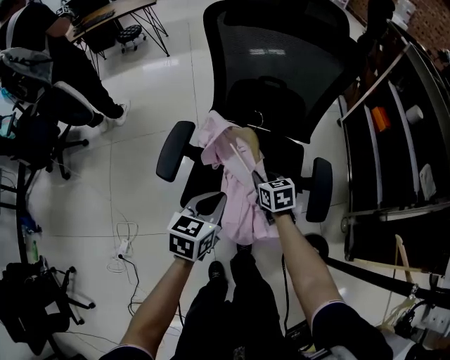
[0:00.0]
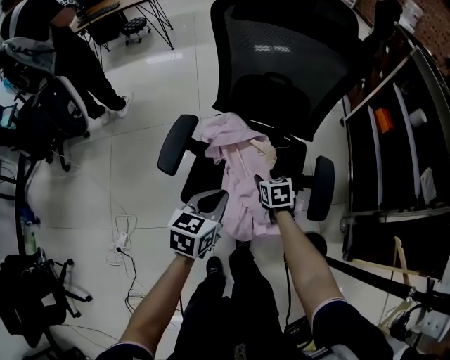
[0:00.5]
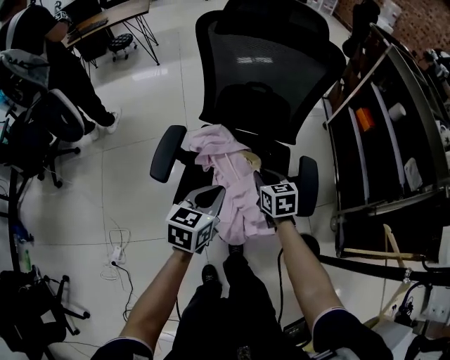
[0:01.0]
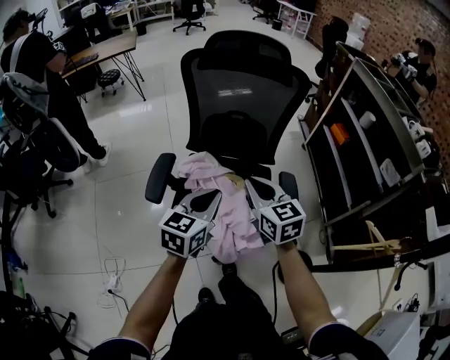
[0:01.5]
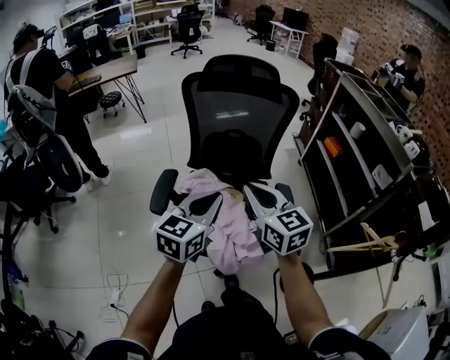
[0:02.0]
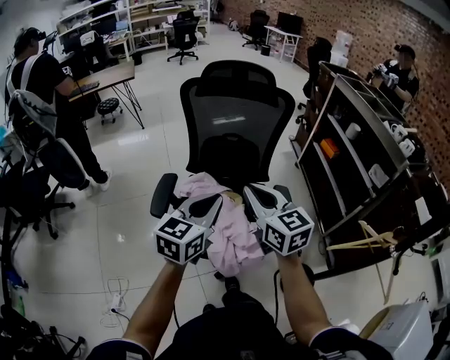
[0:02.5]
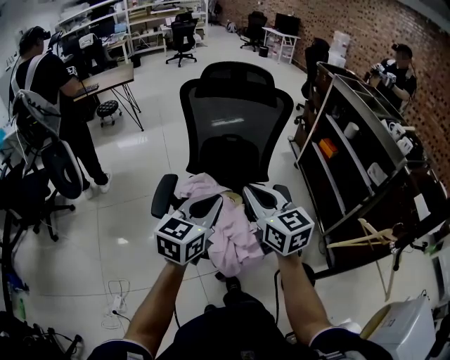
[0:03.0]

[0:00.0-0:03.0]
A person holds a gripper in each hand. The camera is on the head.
0:00.0 to 0:01.5: The left gripper moves upward, about 10 cm; the right gripper goes about 25 cm upward, rotates approximately 30 degrees, and opens and closes again.
0:01.5 to 0:03.0: The left gripper travels upward by about 10 cm, while the right gripper heads upward and backward, covering some 10 cm.

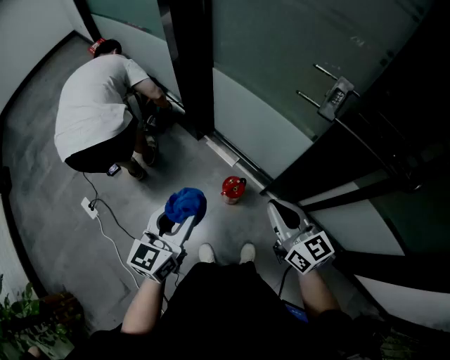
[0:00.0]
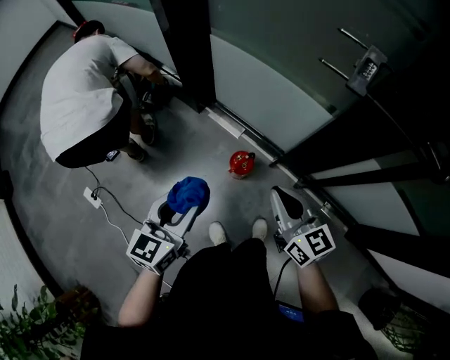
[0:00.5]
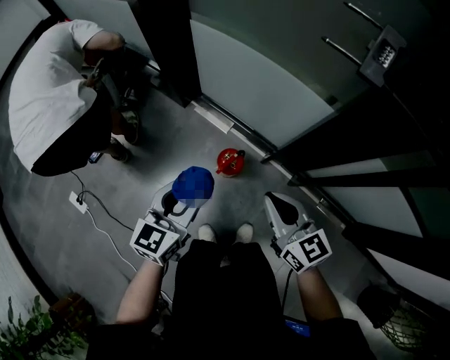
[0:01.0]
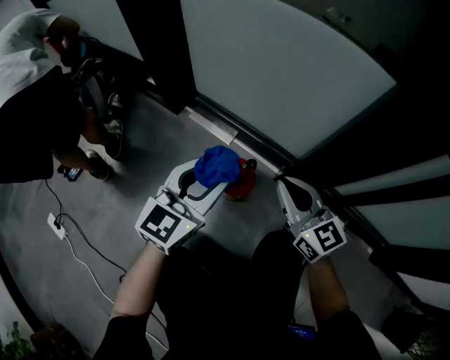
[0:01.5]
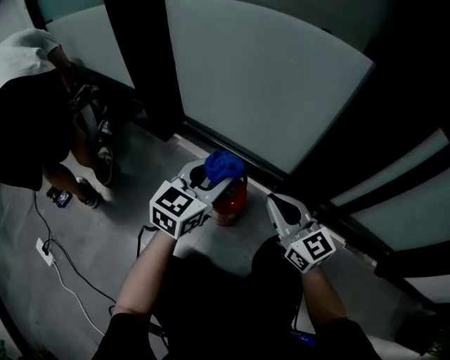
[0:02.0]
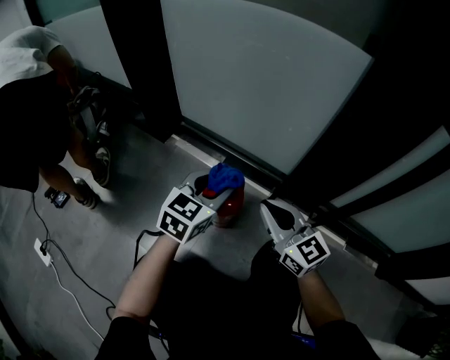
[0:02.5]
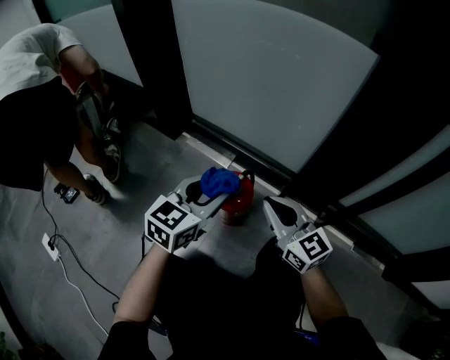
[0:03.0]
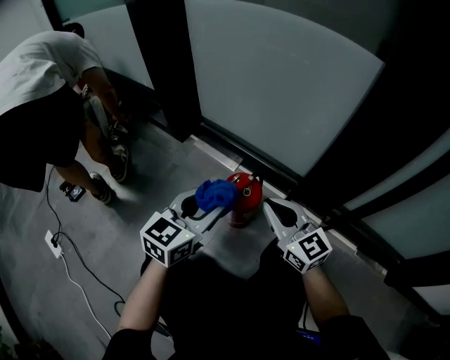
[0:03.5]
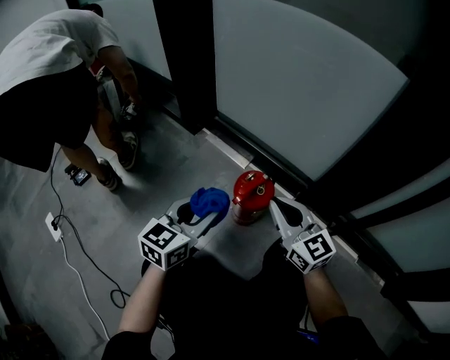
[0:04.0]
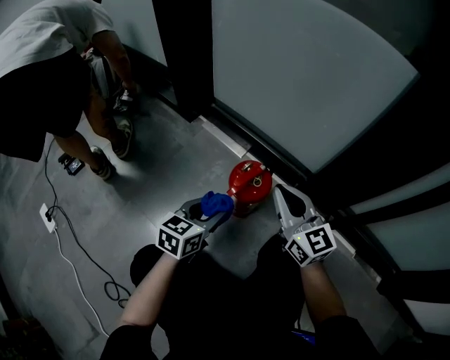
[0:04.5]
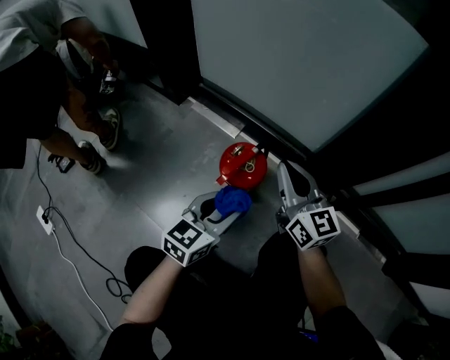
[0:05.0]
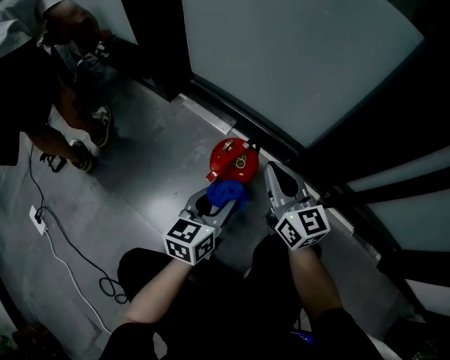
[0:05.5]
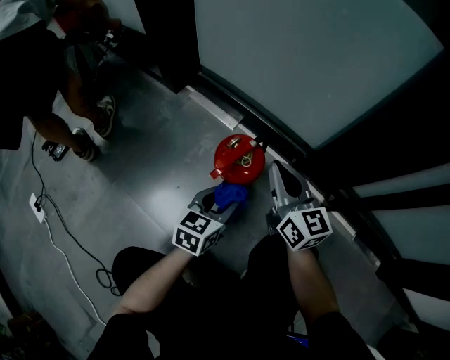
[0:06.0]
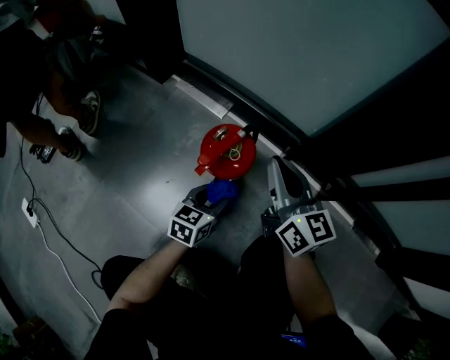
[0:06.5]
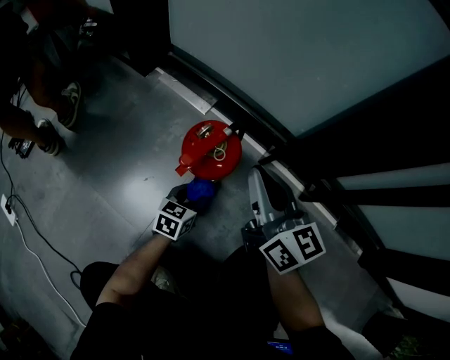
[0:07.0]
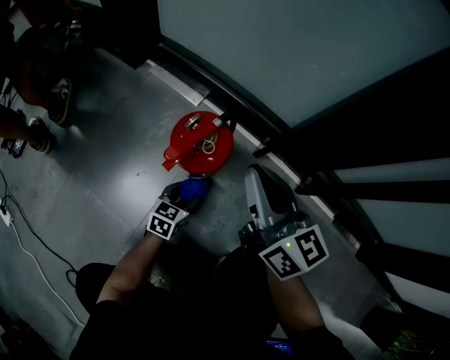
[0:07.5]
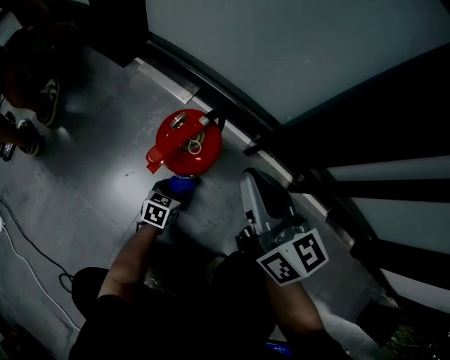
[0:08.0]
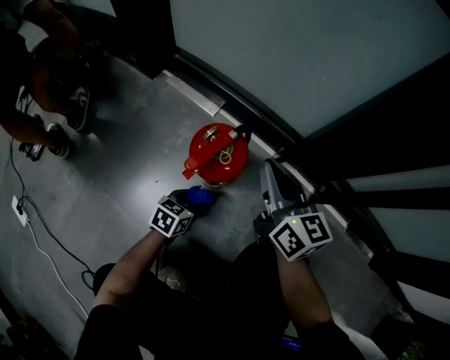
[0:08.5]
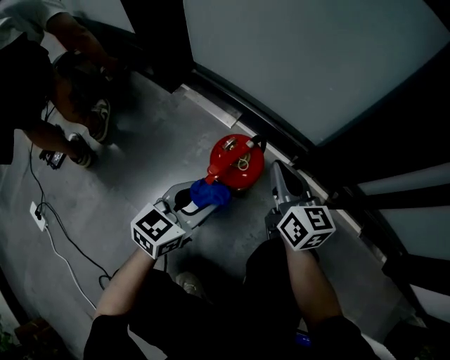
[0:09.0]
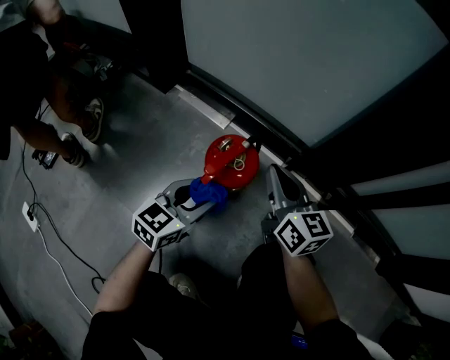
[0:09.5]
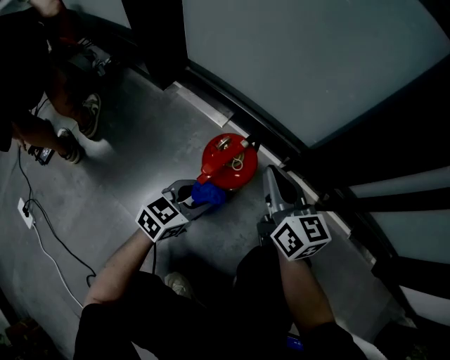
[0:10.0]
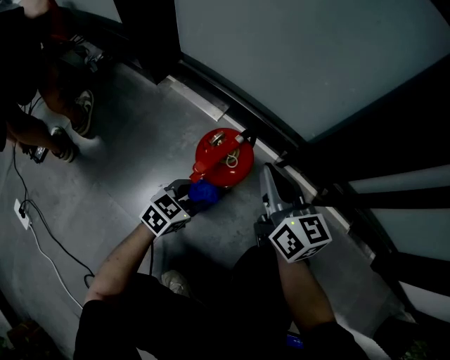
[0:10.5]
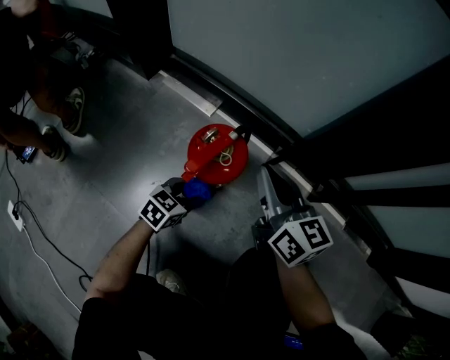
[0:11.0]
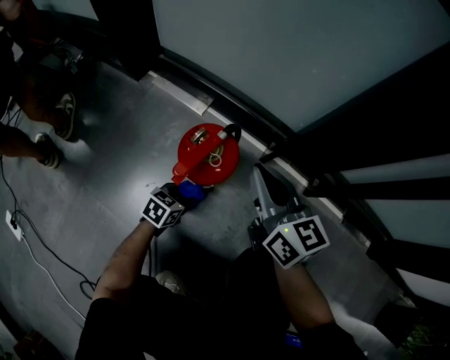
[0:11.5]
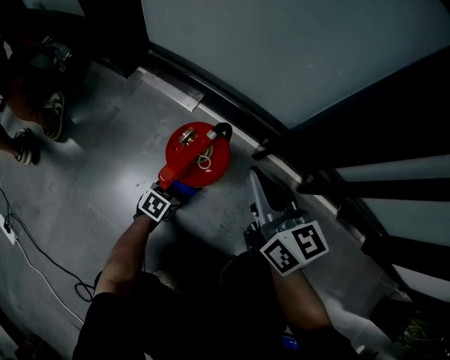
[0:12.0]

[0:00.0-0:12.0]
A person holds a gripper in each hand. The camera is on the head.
0:00.0 to 0:02.0: The right gripper moves downward, approximately 50 cm. The left gripper moves downward and forward, about 50 cm, and turns by roughly 30 degrees.
0:02.0 to 0:04.0: The right gripper shifts some 5 cm to the left. The left gripper travels to the left, backward and downward by roughly 15 cm.
0:04.0 to 0:06.0: The right gripper goes approximately 10 cm downward and forward, while the left gripper moves downward and to the right, some 20 cm.
0:06.0 to 0:08.0: The left gripper heads downward, covering about 25 cm.
0:08.0 to 0:10.0: The left gripper shifts approximately 20 cm upward, and turns by approximately 30 degrees. The right gripper changes place by roughly 5 cm.
0:10.0 to 0:12.0: The left gripper is displaced downward by approximately 20 cm, and turns by some 30 degrees.

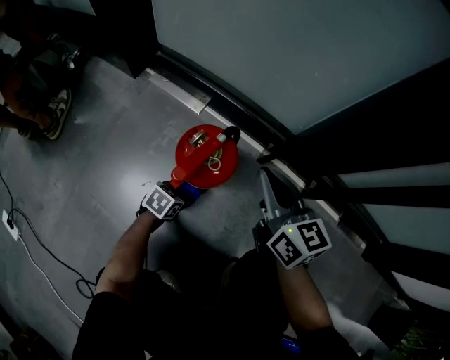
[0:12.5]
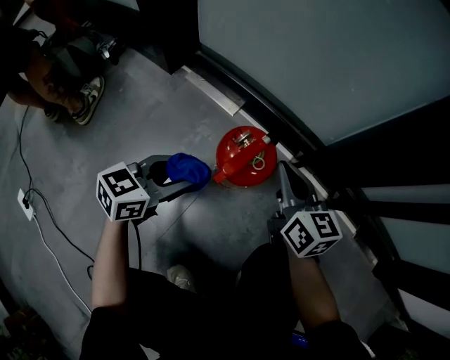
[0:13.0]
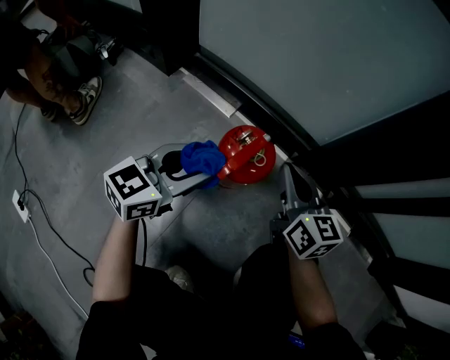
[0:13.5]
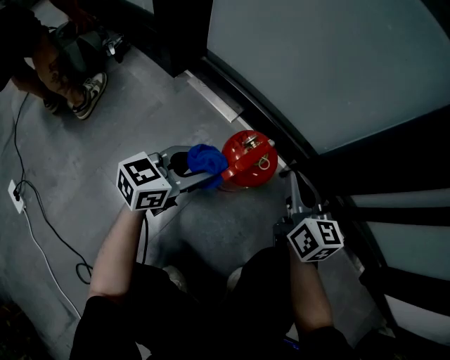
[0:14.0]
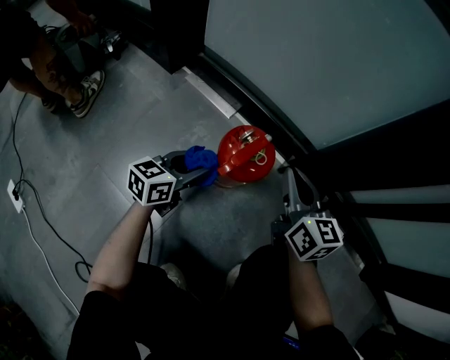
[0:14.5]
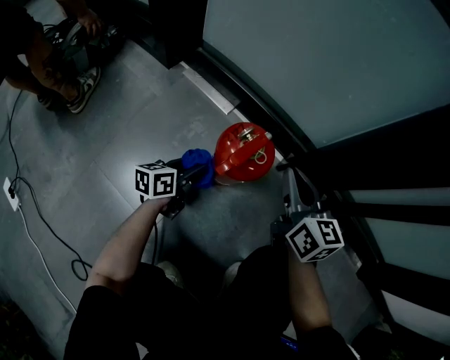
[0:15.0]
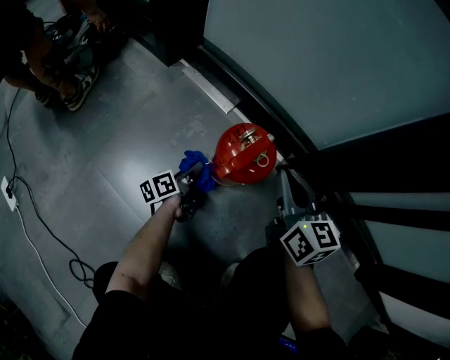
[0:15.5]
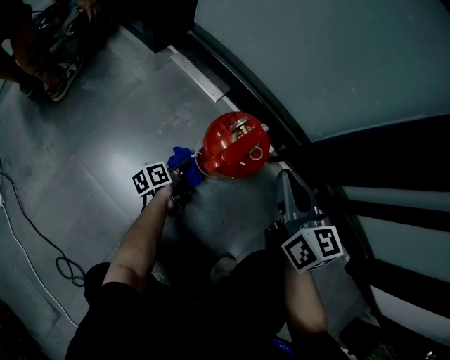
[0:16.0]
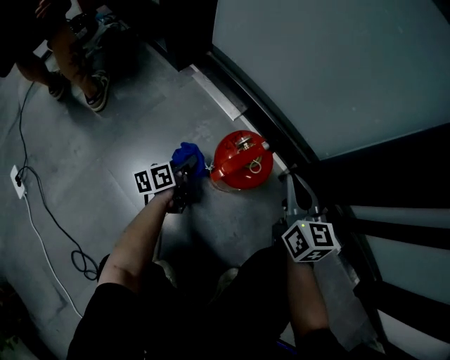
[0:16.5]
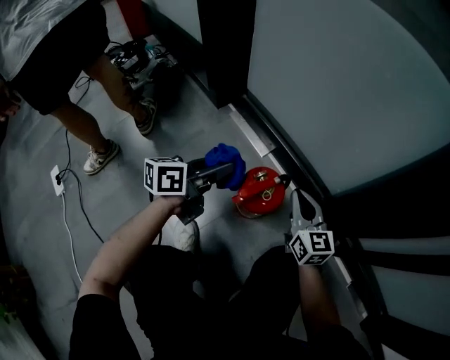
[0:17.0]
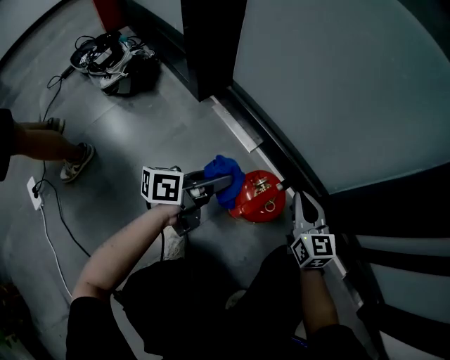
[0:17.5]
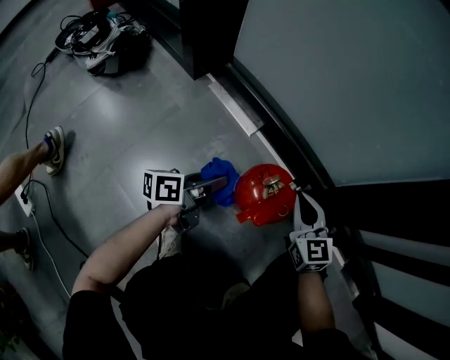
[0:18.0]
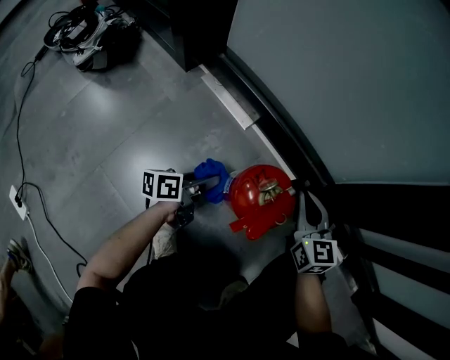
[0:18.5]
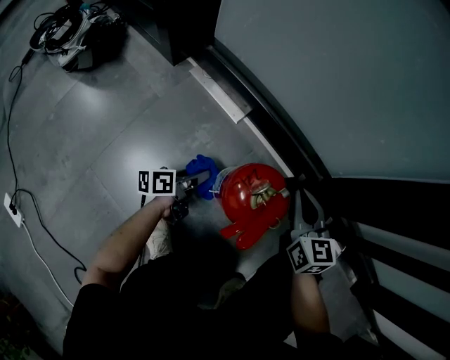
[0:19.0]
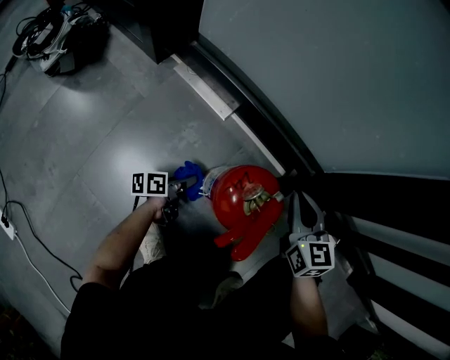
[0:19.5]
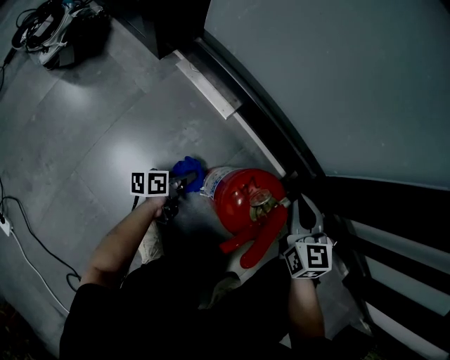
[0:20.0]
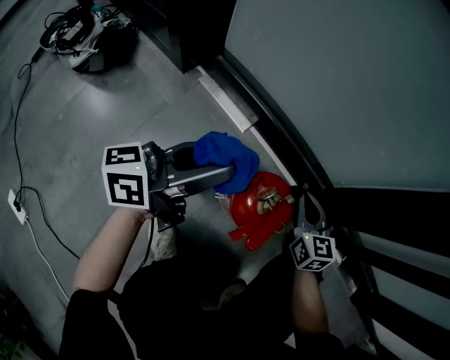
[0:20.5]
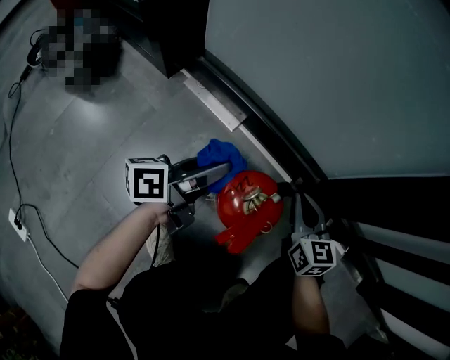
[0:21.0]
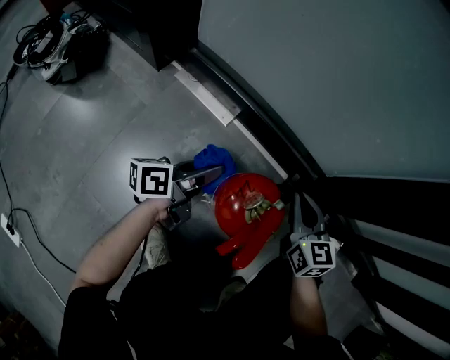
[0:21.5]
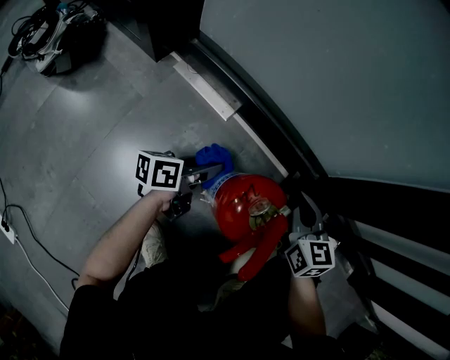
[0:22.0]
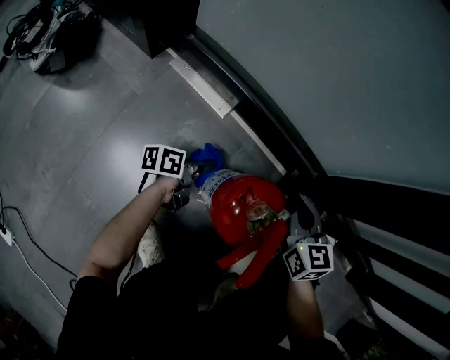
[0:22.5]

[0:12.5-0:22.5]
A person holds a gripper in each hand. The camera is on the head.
0:12.5 to 0:14.5: The left gripper is displaced upward by roughly 20 cm, and points its fingers approximately 40 degrees further upward.
0:14.5 to 0:16.5: The left gripper moves downward and to the left, about 15 cm, and changes its angle by approximately 50 degrees.
0:16.5 to 0:18.5: The right gripper is displaced downward by roughly 5 cm; the left gripper travels upward and back again, some 25 cm each way, and turns by about 30 degrees.
0:18.5 to 0:20.5: The left gripper heads upward, covering about 25 cm, and changes its angle by approximately 30 degrees.
0:20.5 to 0:22.5: The left gripper moves downward, approximately 35 cm, and tilts its fingers some 30 degrees downward.

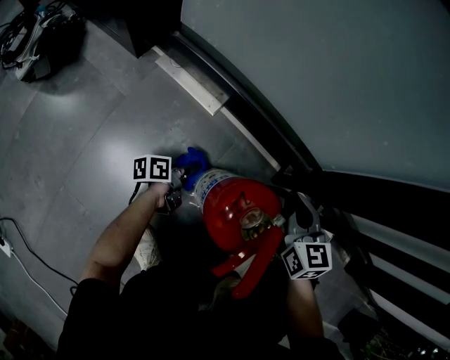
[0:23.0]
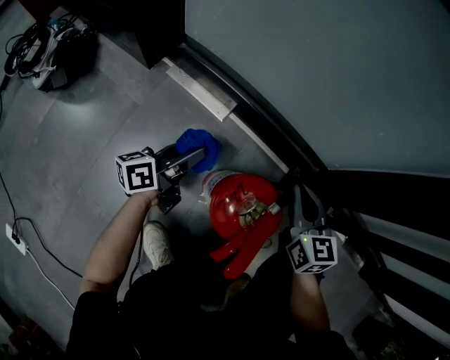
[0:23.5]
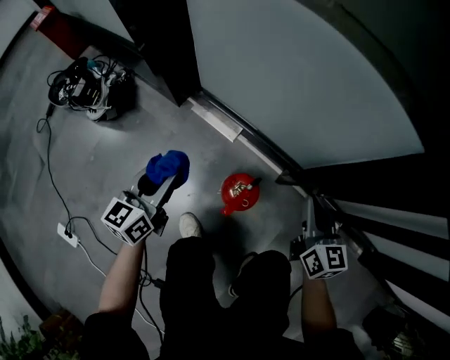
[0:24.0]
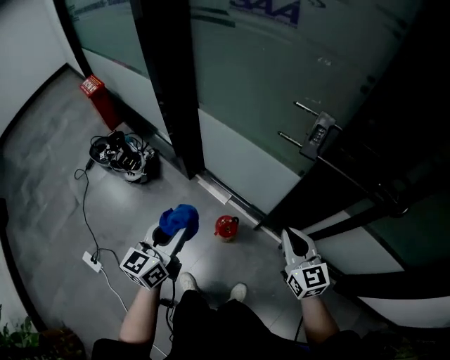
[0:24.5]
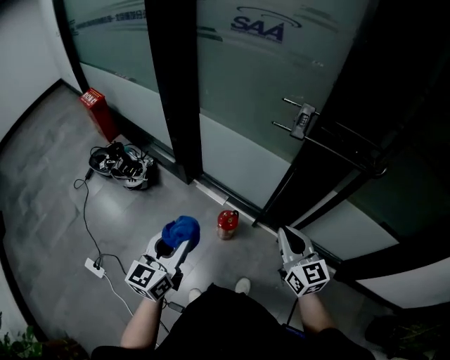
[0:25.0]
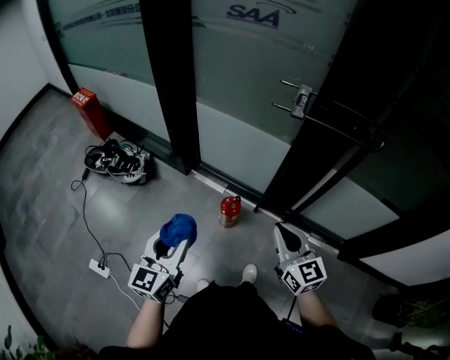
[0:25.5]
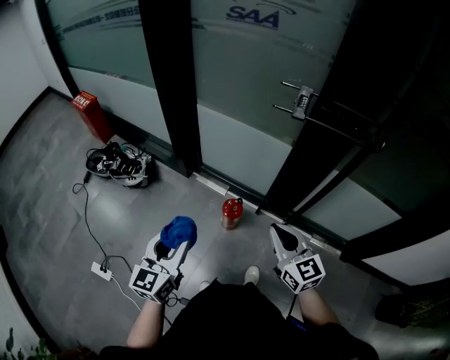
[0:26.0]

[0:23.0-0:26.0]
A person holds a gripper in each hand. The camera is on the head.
0:23.0 to 0:24.5: Both grippers move upward, roughly 90 cm. The left gripper rotates about 70 degrees. The right gripper swivels roughly 20 degrees.
0:24.5 to 0:26.0: The two grippers go approximately 20 cm backward and to the left.
